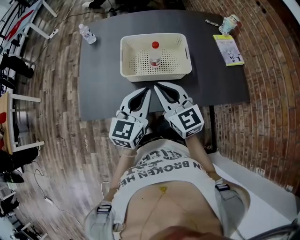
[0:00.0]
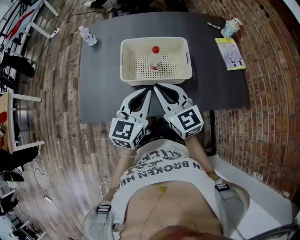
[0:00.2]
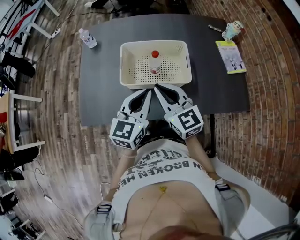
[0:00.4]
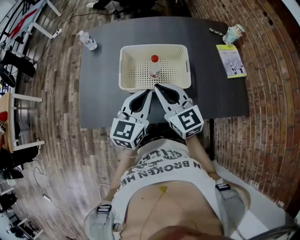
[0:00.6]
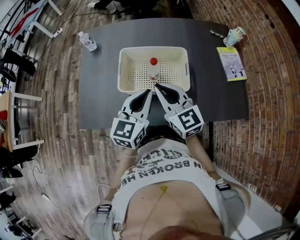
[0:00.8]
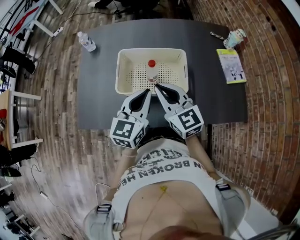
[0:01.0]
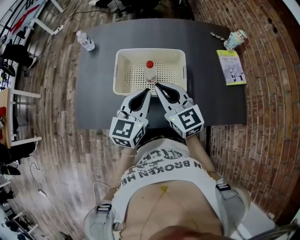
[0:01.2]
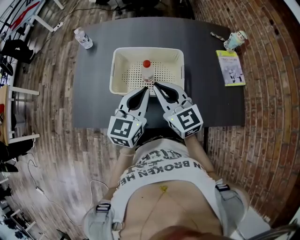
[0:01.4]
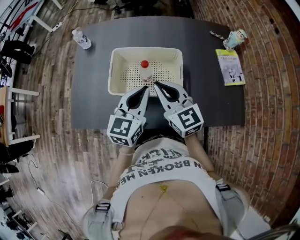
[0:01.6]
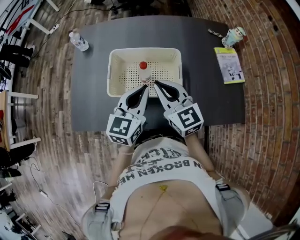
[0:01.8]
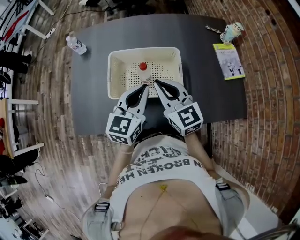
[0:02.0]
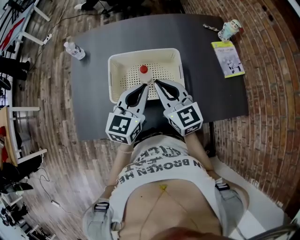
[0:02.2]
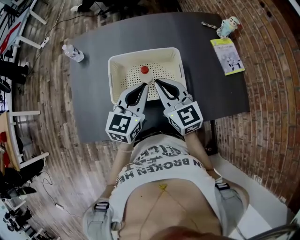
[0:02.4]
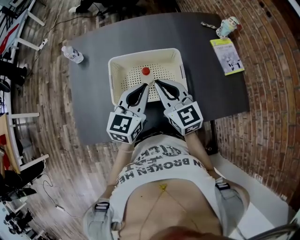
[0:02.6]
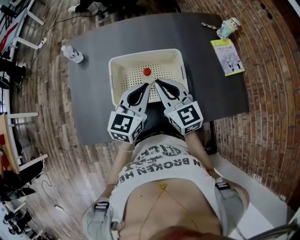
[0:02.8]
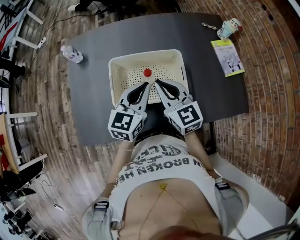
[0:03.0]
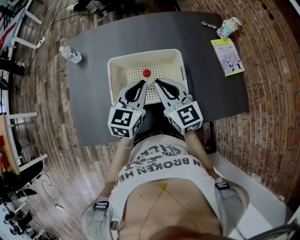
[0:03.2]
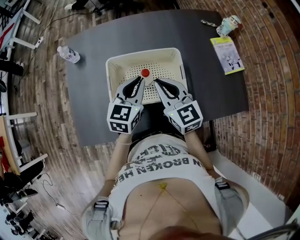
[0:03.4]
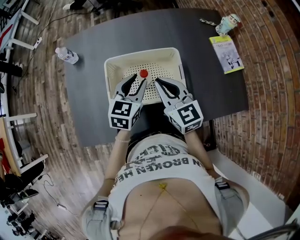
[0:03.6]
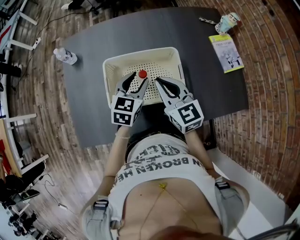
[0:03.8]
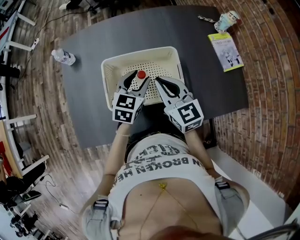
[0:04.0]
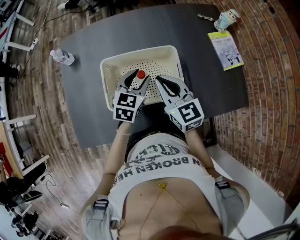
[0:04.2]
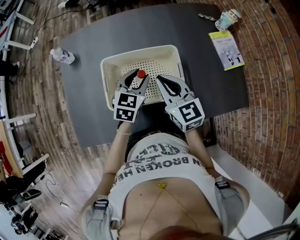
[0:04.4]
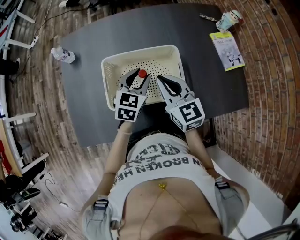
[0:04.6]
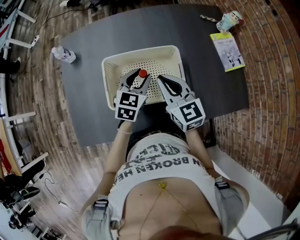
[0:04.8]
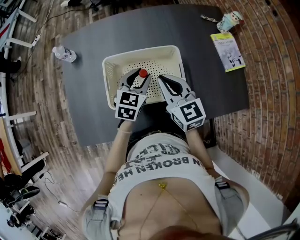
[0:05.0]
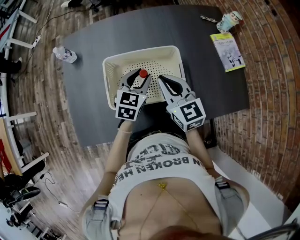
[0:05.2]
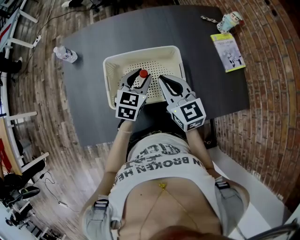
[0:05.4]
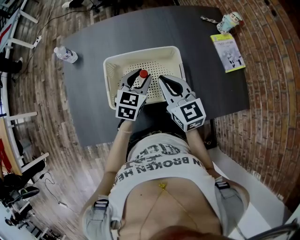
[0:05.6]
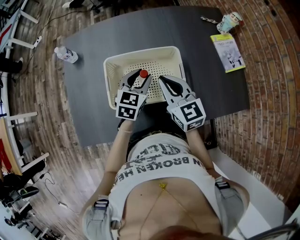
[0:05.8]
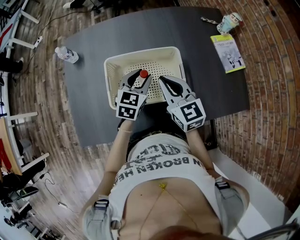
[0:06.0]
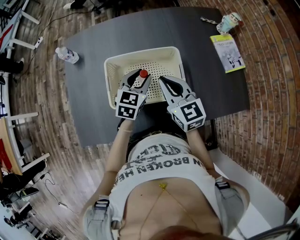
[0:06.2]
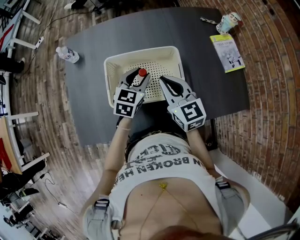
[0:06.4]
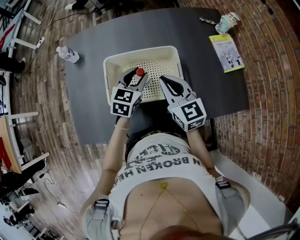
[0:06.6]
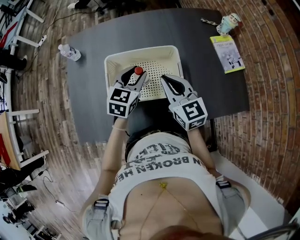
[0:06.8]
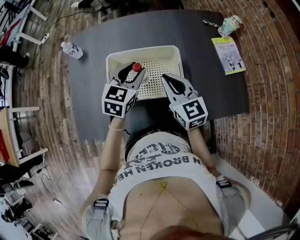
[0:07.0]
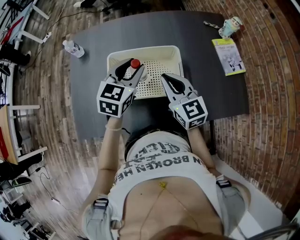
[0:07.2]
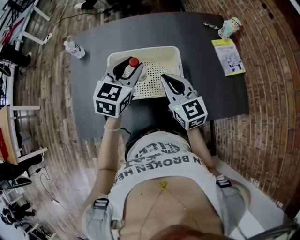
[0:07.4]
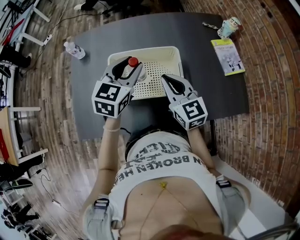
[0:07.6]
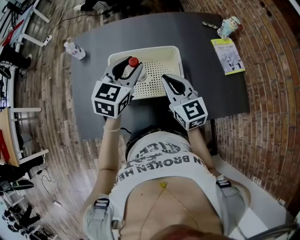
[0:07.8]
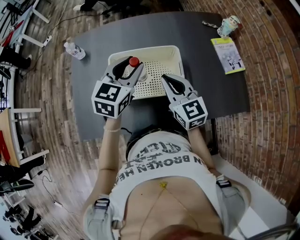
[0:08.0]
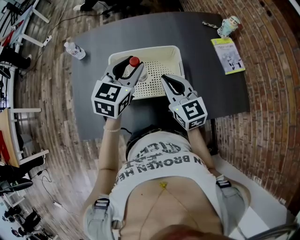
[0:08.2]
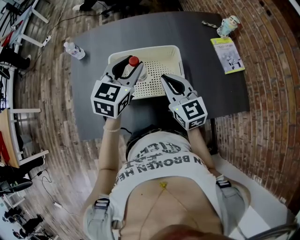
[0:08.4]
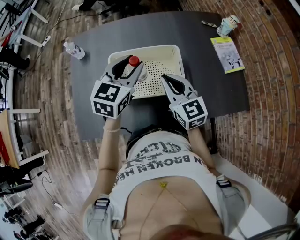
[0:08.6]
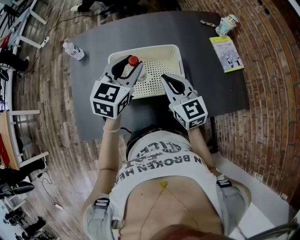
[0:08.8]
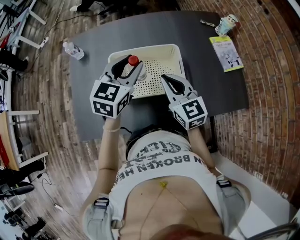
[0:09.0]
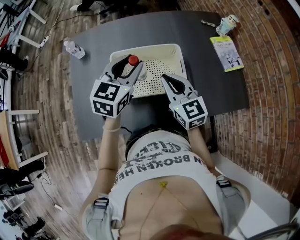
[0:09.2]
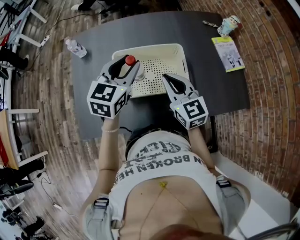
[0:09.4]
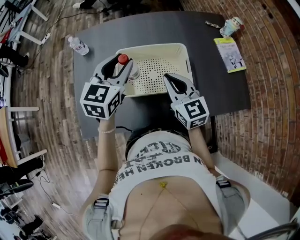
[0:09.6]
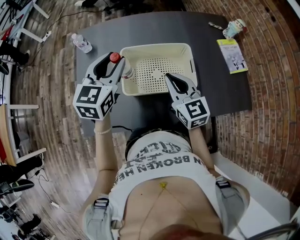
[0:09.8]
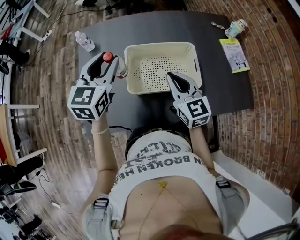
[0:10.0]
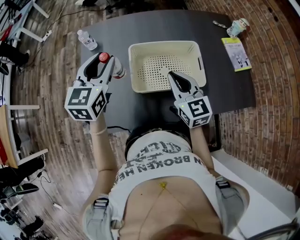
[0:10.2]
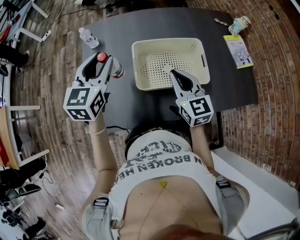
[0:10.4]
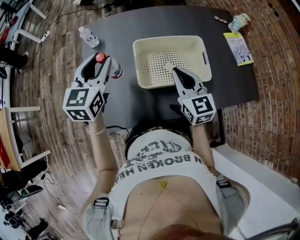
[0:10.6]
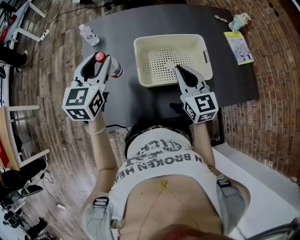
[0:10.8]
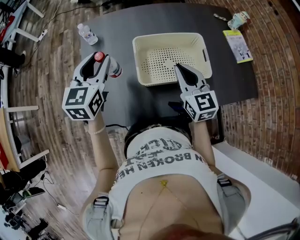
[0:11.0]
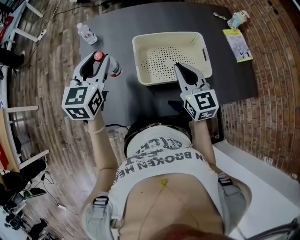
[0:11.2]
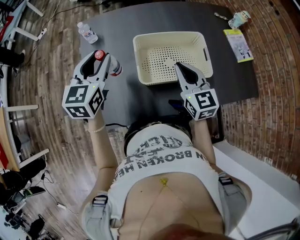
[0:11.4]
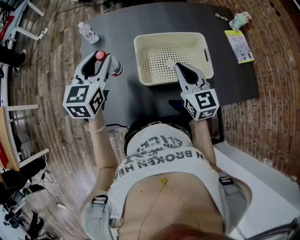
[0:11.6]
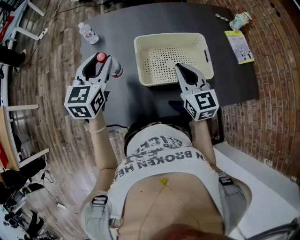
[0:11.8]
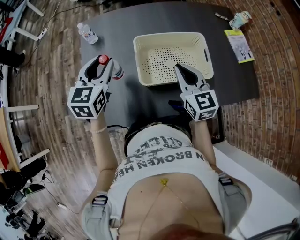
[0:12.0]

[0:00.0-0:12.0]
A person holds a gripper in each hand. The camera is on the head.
0.0 to 1.6 s: The two grippers go some 15 cm forward and to the right.
1.6 to 3.0 s: The grippers both shift forward by about 5 cm.
3.0 to 4.4 s: The left gripper shifts some 10 cm downward and forward, and opens its fingers.
4.4 to 6.0 s: Both grippers stay about where they are.
6.0 to 7.6 s: The left gripper goes about 15 cm upward.
7.6 to 9.0 s: The grippers make only small movements.
9.0 to 10.4 s: The left gripper is displaced to the left by approximately 25 cm. The right gripper travels to the left by about 10 cm.
10.4 to 12.0 s: The left gripper goes approximately 5 cm downward.

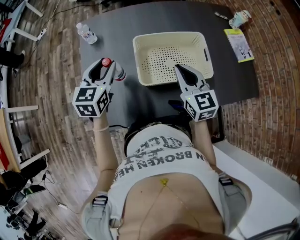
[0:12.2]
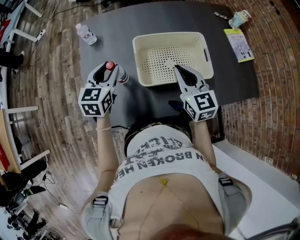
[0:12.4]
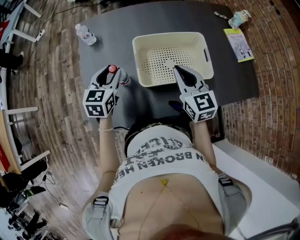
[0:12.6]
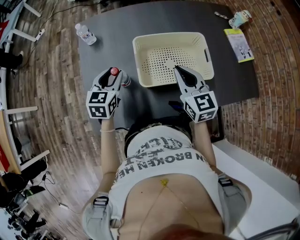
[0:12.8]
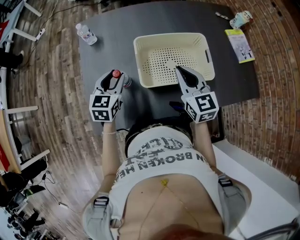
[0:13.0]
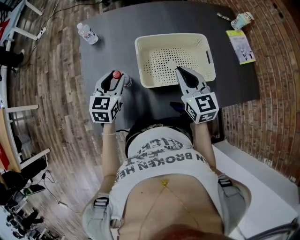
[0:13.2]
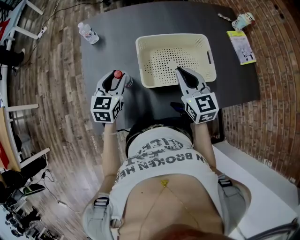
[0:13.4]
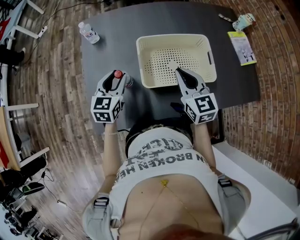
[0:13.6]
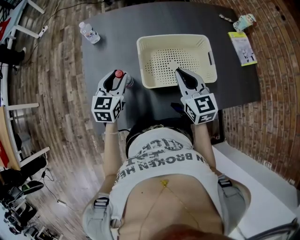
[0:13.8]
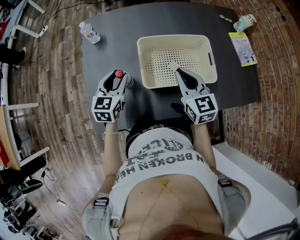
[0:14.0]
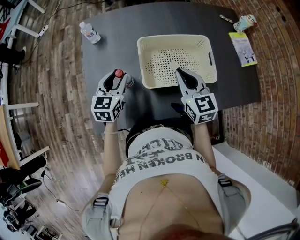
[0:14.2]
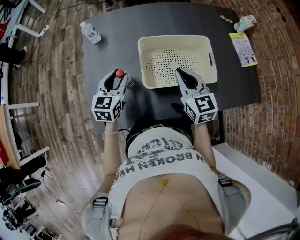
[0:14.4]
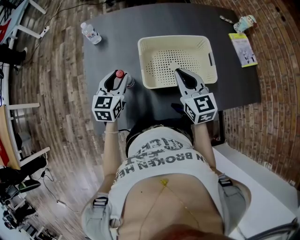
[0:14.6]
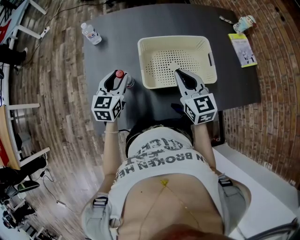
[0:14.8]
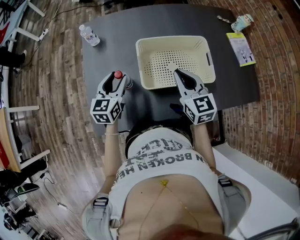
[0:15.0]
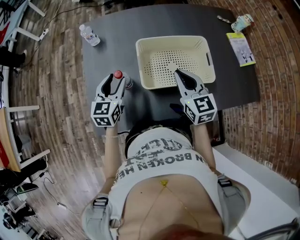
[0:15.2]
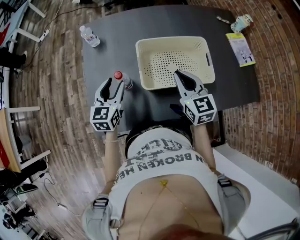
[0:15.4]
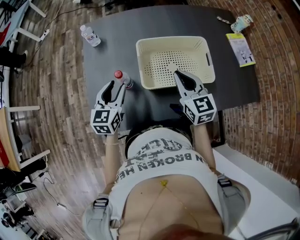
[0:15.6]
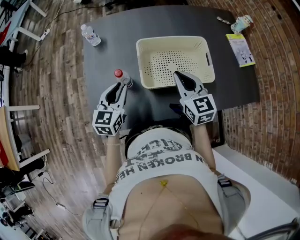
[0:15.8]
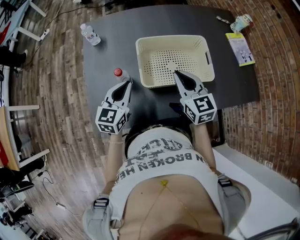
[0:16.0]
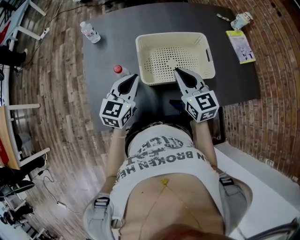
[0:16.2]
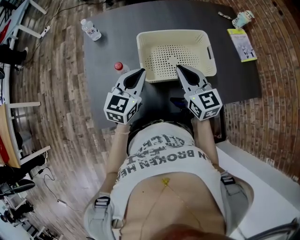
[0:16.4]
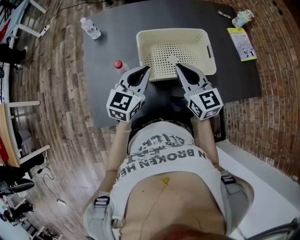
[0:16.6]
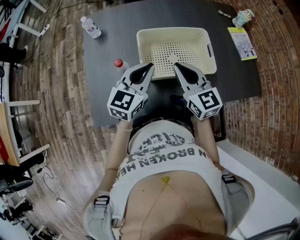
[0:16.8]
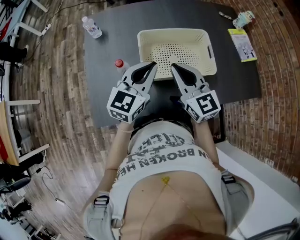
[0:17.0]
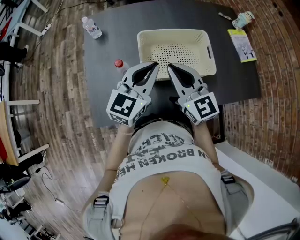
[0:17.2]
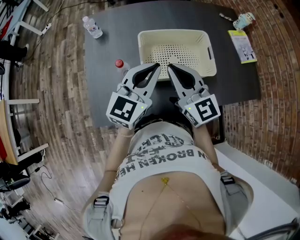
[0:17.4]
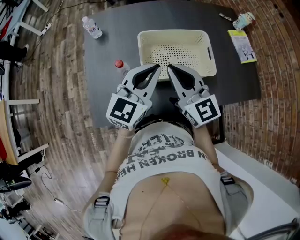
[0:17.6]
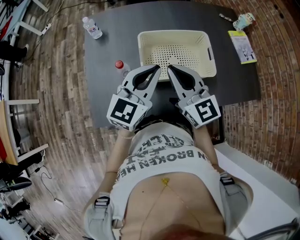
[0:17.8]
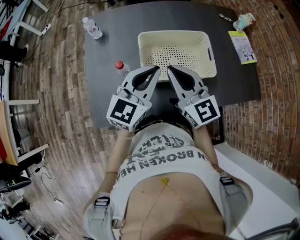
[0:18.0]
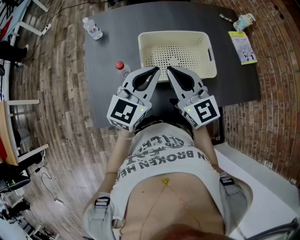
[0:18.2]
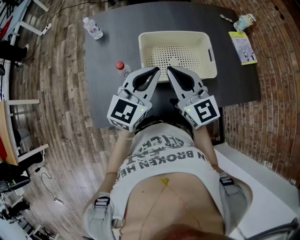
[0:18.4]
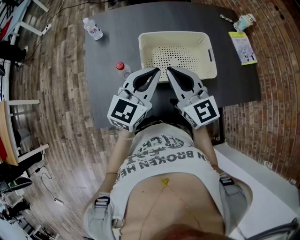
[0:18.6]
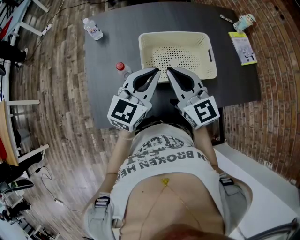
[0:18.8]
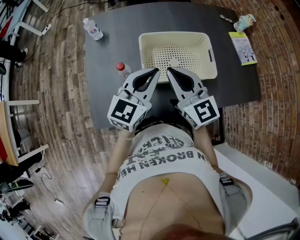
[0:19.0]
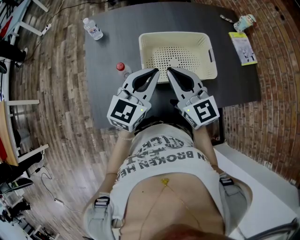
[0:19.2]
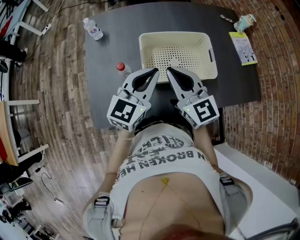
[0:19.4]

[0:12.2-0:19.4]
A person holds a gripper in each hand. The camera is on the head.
12.2 to 13.6 s: The left gripper goes about 10 cm downward.
13.6 to 15.0 s: The grippers make only small movements.
15.0 to 16.6 s: The left gripper travels to the right and upward by roughly 15 cm, and closes up.
16.6 to 18.0 s: The grippers both shift upward by approximately 5 cm.
18.0 to 19.4 s: The grippers make only small movements.

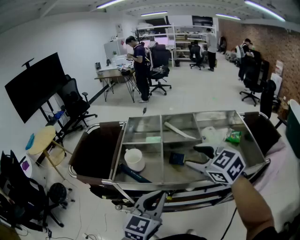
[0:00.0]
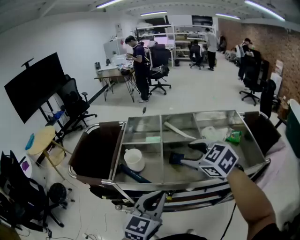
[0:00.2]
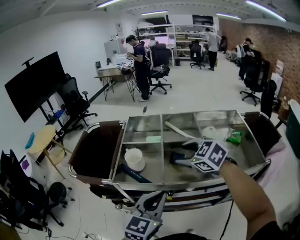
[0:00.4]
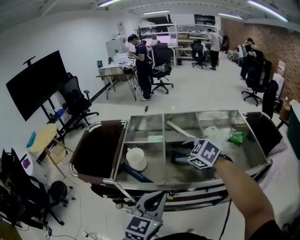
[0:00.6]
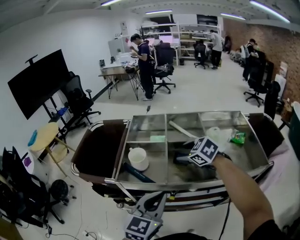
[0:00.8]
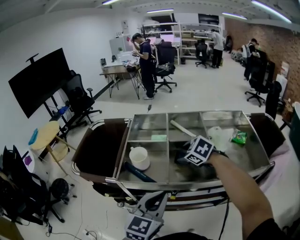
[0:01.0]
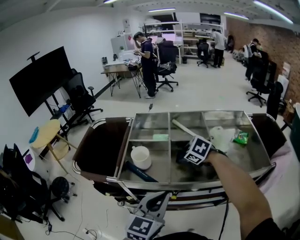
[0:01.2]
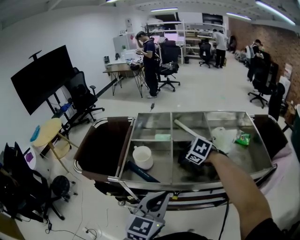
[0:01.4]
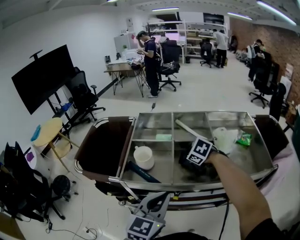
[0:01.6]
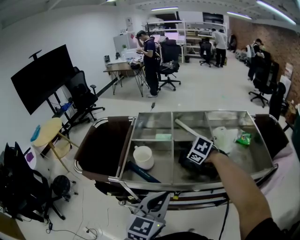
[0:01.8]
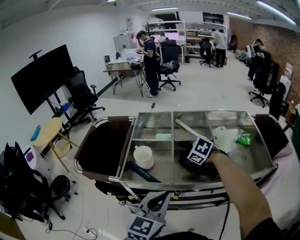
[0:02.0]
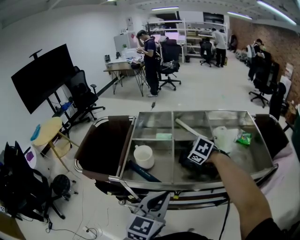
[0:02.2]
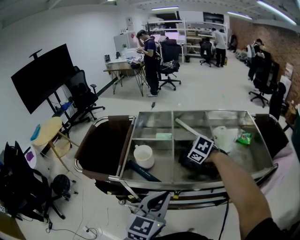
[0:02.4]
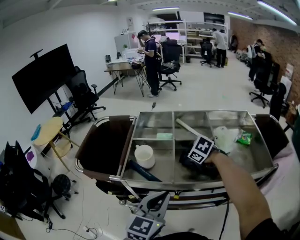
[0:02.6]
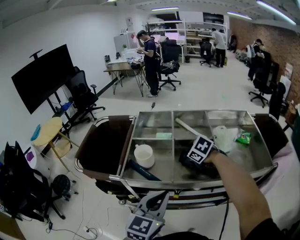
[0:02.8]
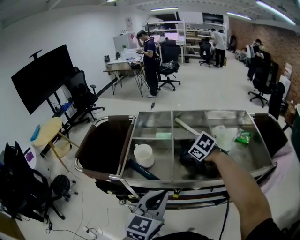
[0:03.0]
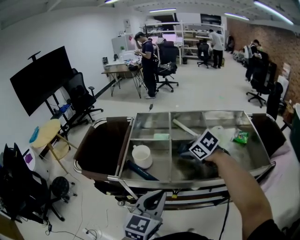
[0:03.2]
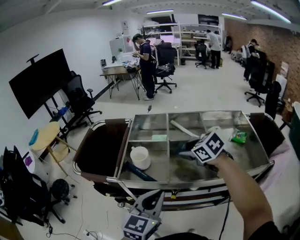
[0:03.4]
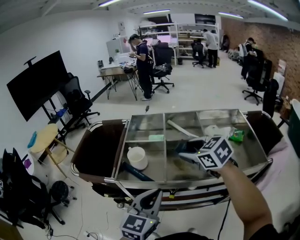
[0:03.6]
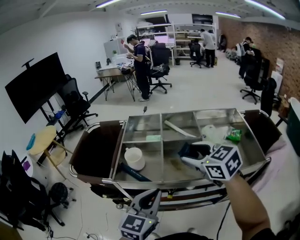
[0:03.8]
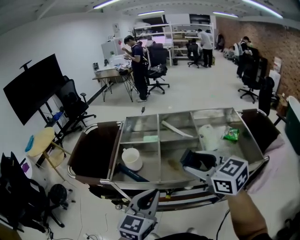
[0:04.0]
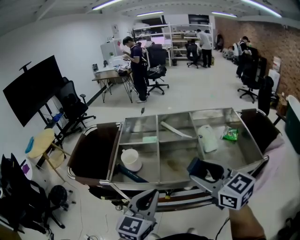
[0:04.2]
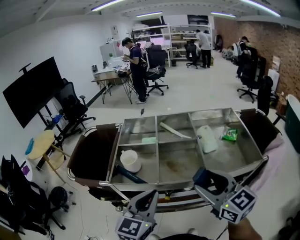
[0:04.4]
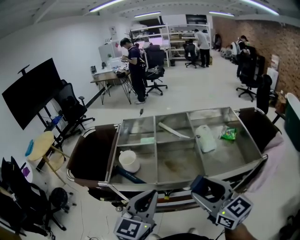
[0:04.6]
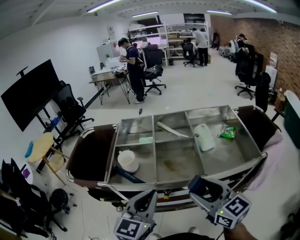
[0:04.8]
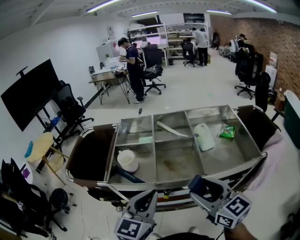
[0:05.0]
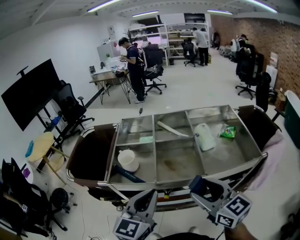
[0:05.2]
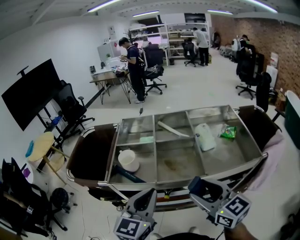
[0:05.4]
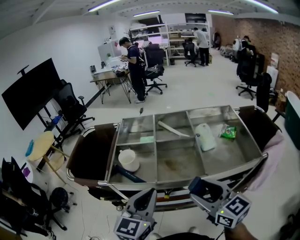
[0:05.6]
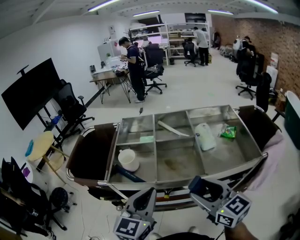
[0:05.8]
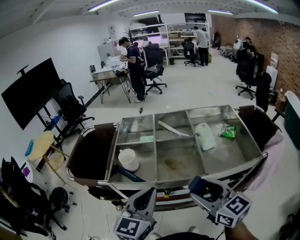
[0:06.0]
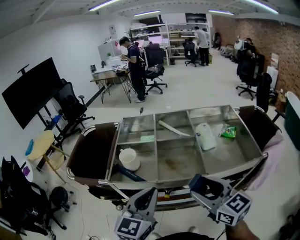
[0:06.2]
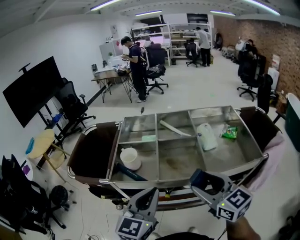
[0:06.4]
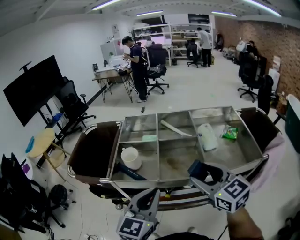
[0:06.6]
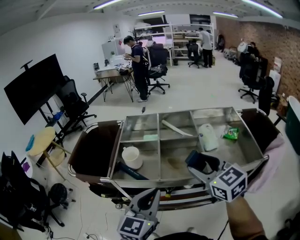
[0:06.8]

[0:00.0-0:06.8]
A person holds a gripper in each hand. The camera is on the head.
0.0 to 1.4 s: The right gripper moves downward and forward, some 20 cm, and points its fingers some 30 degrees further downward.
1.4 to 2.8 s: The grippers move only a little.
2.8 to 4.0 s: The right gripper is displaced upward and backward by roughly 25 cm, and tilts its fingers approximately 40 degrees upward.
4.0 to 5.4 s: The right gripper moves backward, about 10 cm.
5.4 to 6.8 s: The right gripper travels forward by about 10 cm.
